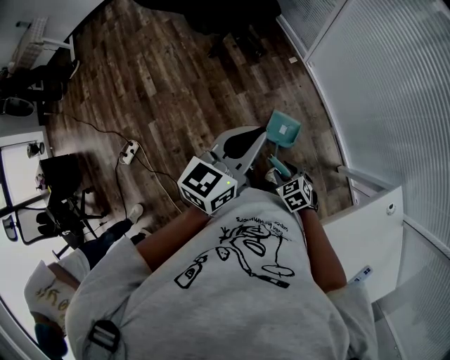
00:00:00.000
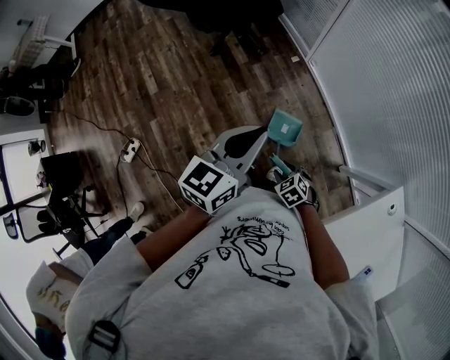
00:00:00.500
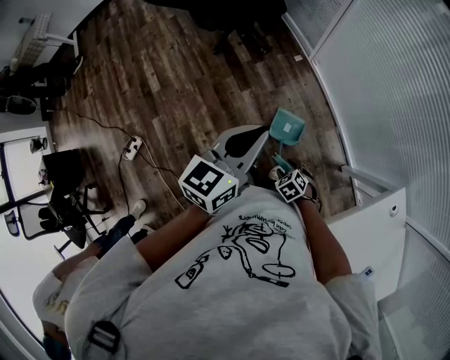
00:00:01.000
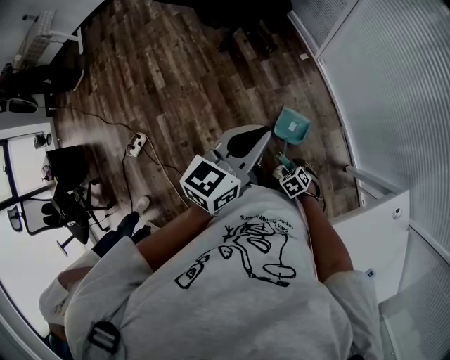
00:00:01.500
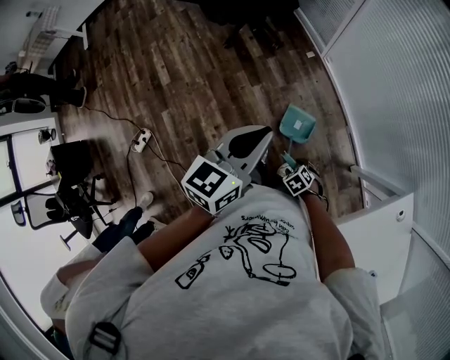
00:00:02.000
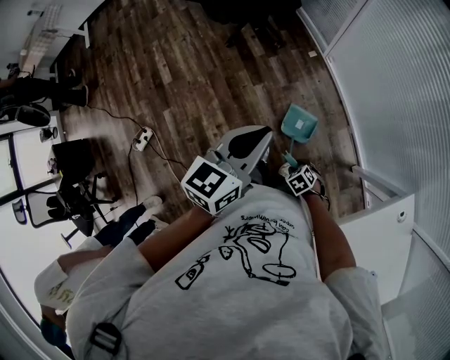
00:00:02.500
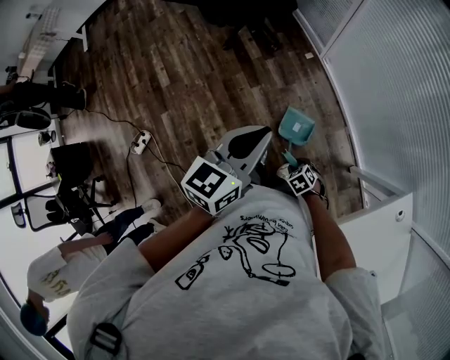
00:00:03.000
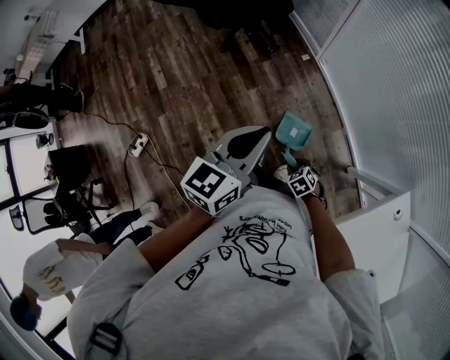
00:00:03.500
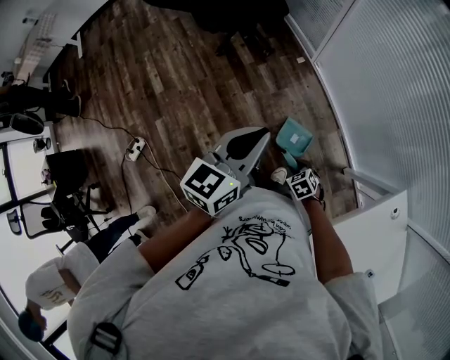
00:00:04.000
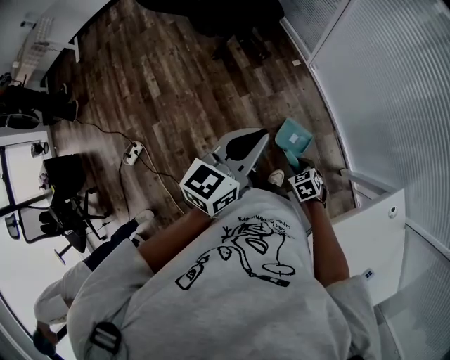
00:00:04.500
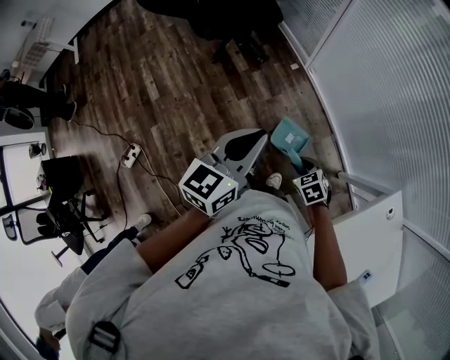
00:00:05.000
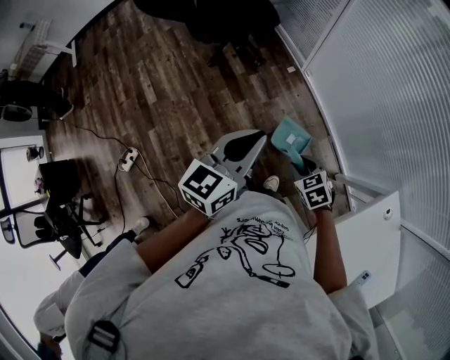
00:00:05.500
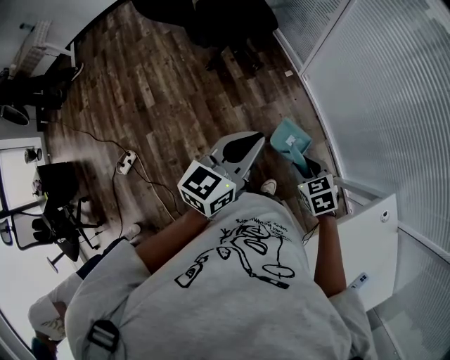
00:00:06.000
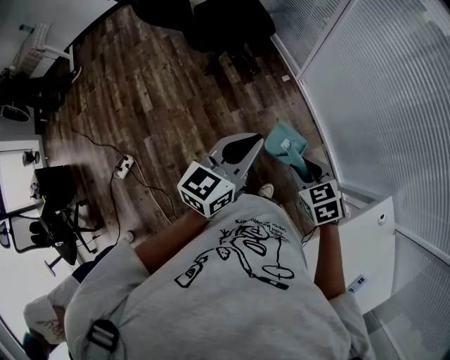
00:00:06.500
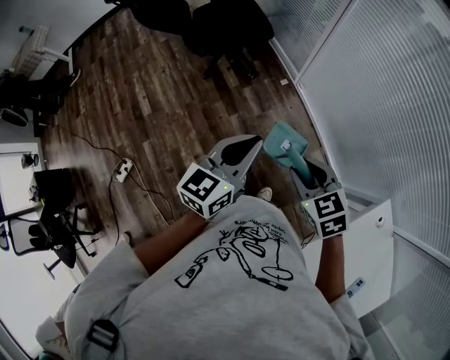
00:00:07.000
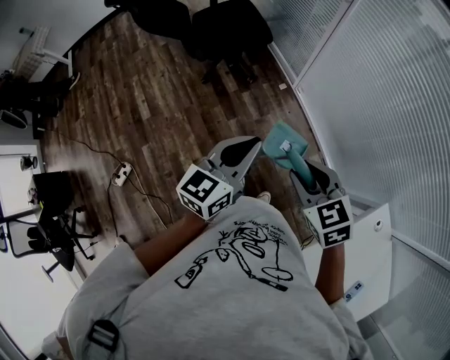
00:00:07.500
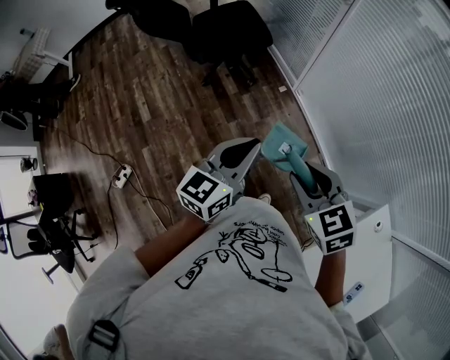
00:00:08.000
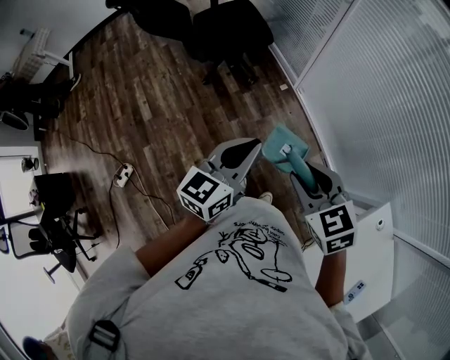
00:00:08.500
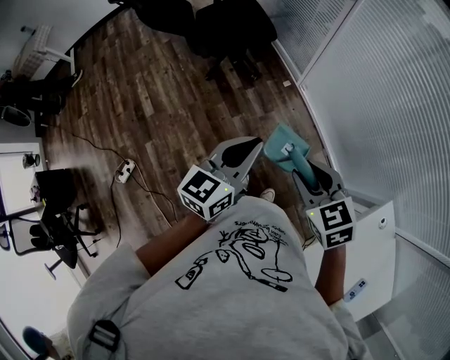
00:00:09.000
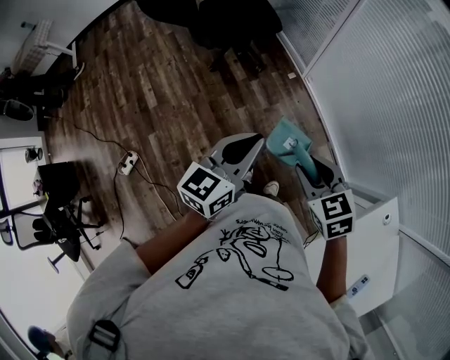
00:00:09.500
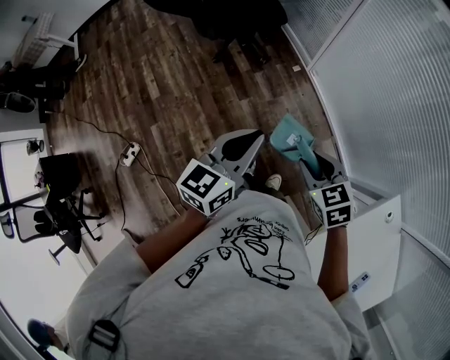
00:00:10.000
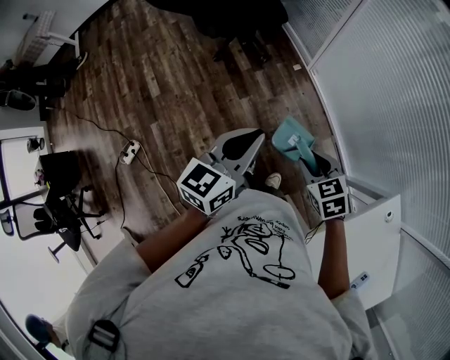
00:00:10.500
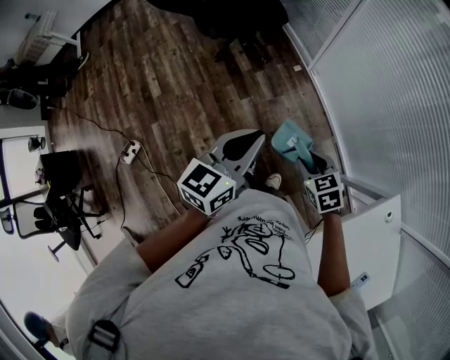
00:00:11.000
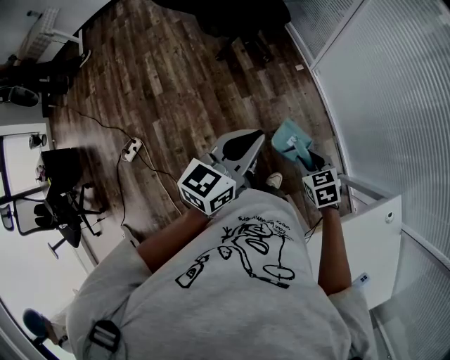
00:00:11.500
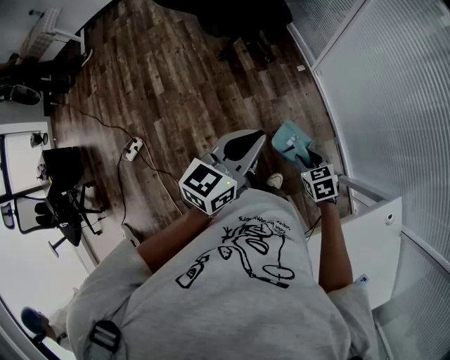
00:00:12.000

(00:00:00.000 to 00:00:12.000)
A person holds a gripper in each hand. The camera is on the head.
00:00:00.000 - 00:00:02.000: The right gripper travels downward by about 15 cm.
00:00:02.000 - 00:00:04.000: The right gripper travels upward by some 5 cm.
00:00:04.000 - 00:00:06.000: The right gripper is displaced upward by roughly 20 cm.
00:00:06.000 - 00:00:08.000: The right gripper goes about 20 cm upward.
00:00:08.000 - 00:00:10.000: The right gripper moves downward, some 10 cm.
00:00:10.000 - 00:00:12.000: The right gripper moves downward, some 15 cm.

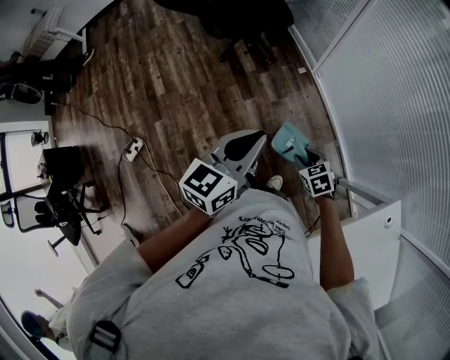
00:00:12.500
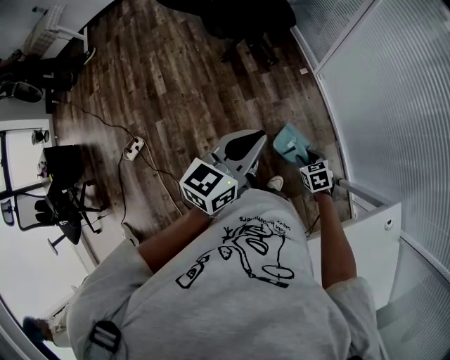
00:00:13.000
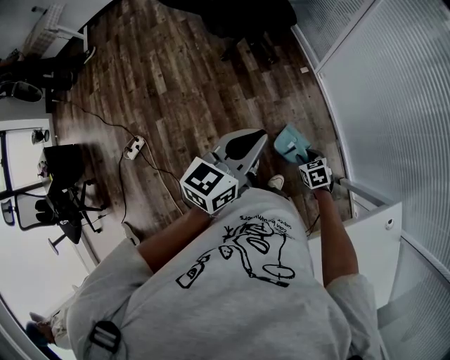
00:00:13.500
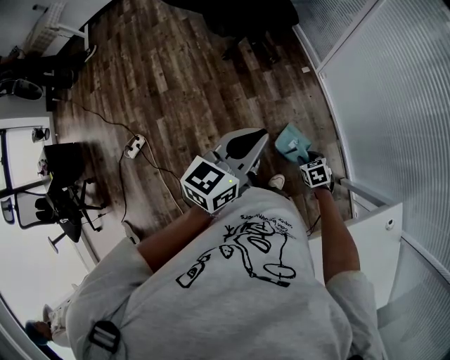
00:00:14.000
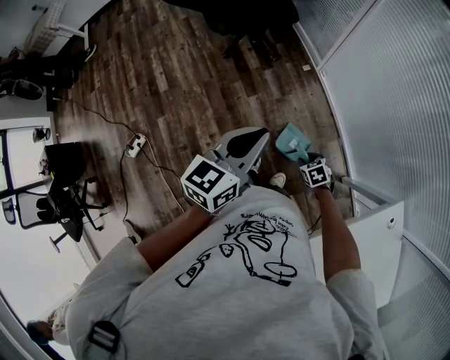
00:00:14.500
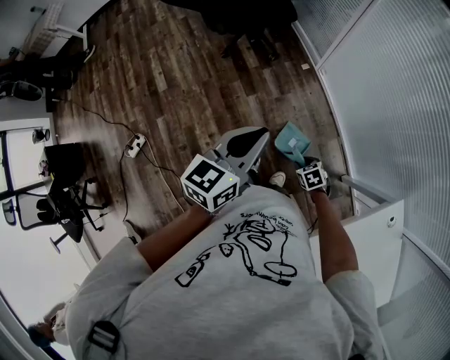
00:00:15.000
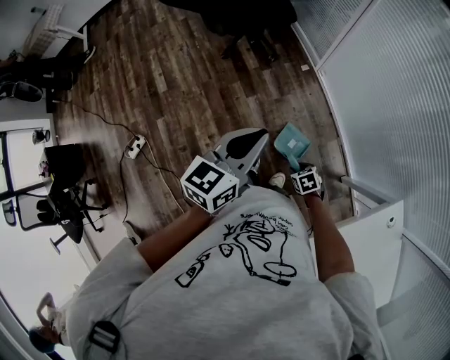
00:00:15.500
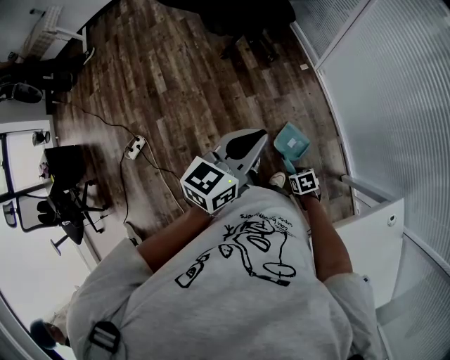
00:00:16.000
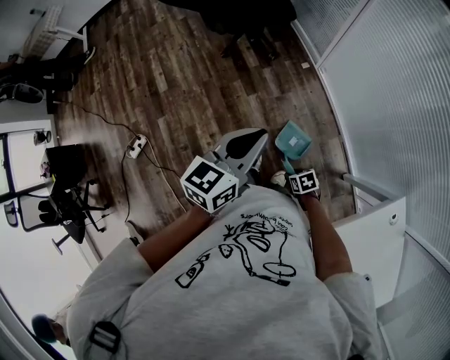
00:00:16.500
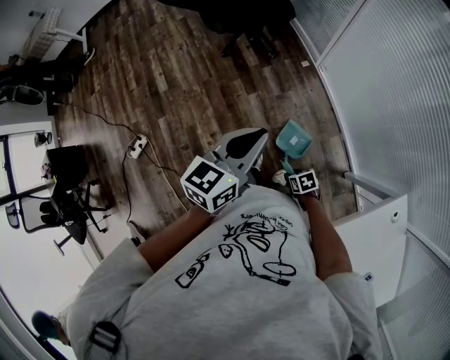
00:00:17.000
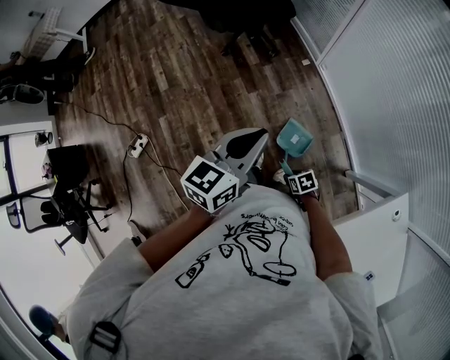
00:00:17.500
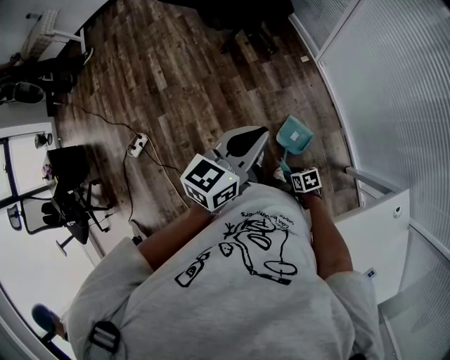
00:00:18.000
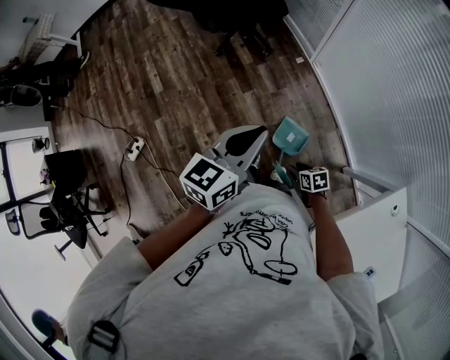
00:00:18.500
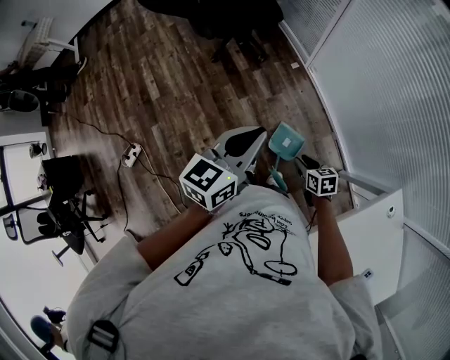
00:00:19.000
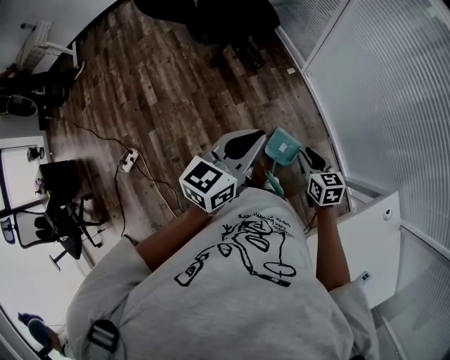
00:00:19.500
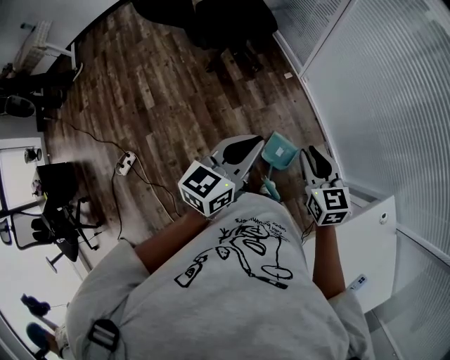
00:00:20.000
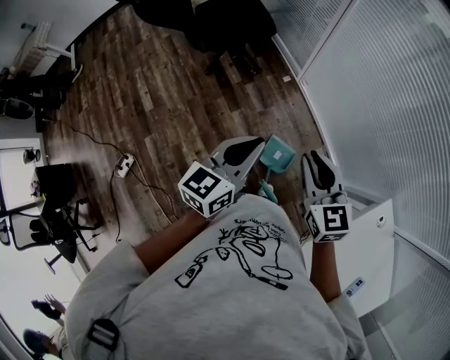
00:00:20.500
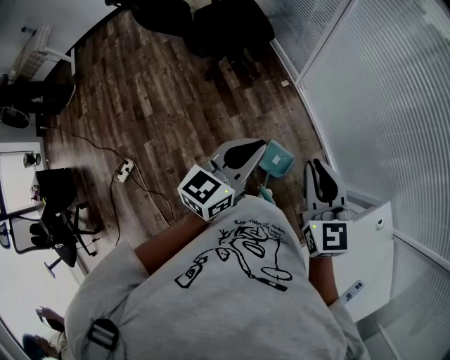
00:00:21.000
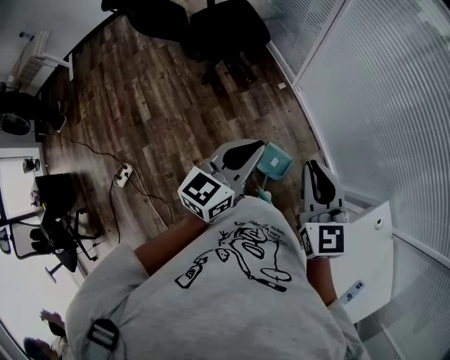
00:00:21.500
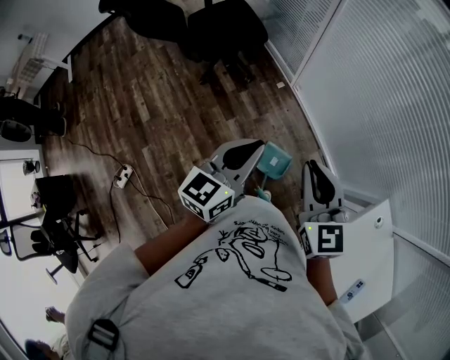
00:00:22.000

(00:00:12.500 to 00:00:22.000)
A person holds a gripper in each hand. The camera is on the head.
00:00:12.500 - 00:00:14.500: The right gripper goes approximately 10 cm downward.
00:00:14.500 - 00:00:16.500: The right gripper shifts some 10 cm backward and to the left.
00:00:16.500 - 00:00:18.000: The grippers stay close to where they were, moving slightly.
00:00:18.000 - 00:00:20.000: The right gripper goes some 35 cm upward, and tips its fingers upward by about 30 degrees.
00:00:20.000 - 00:00:22.000: The right gripper heads upward, covering approximately 10 cm.

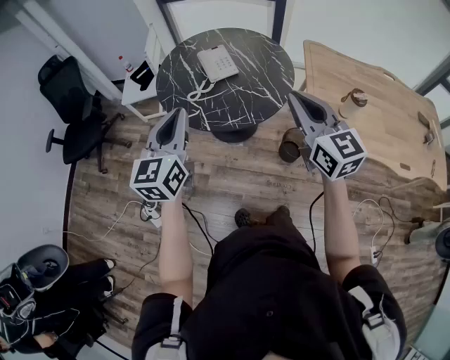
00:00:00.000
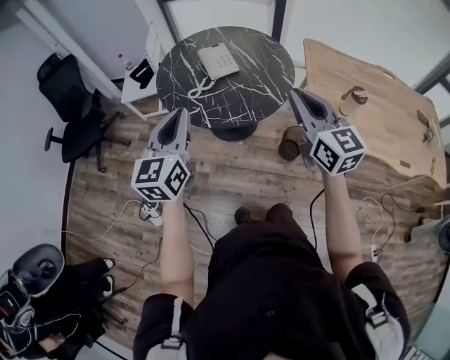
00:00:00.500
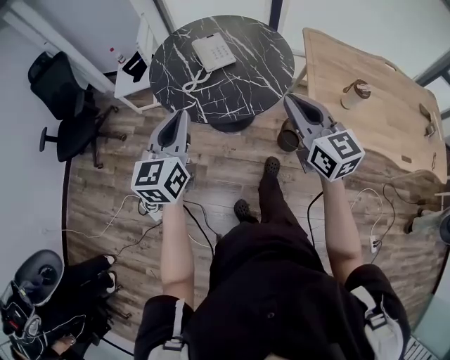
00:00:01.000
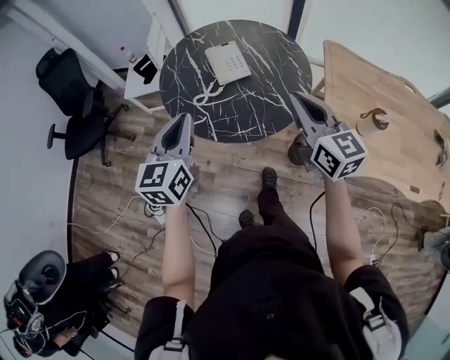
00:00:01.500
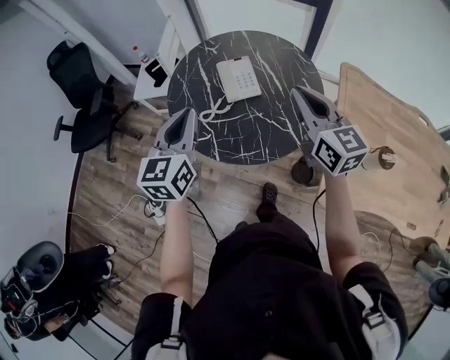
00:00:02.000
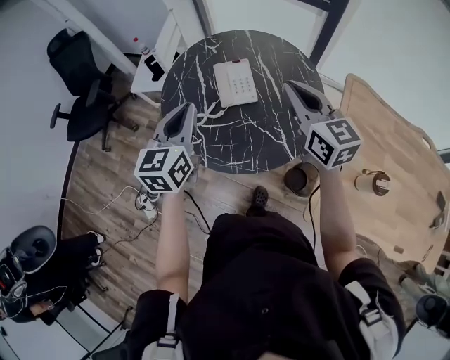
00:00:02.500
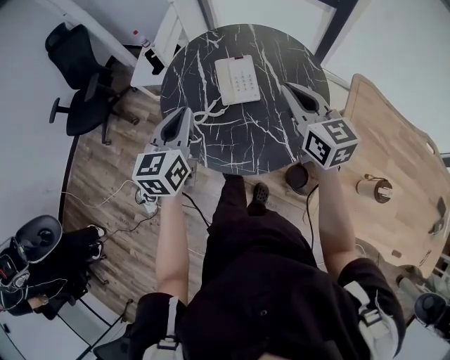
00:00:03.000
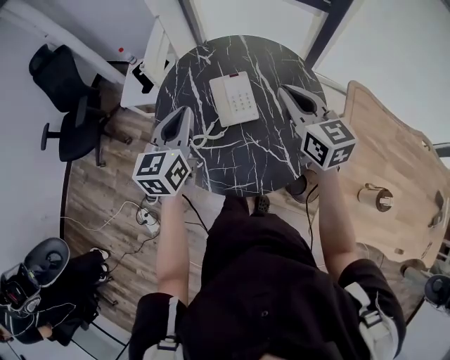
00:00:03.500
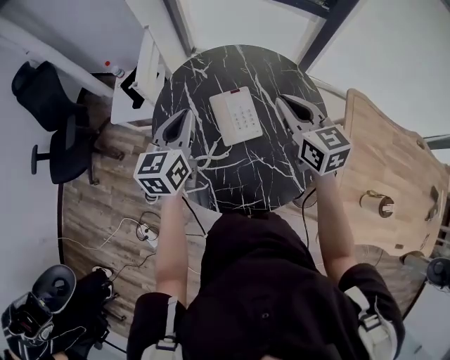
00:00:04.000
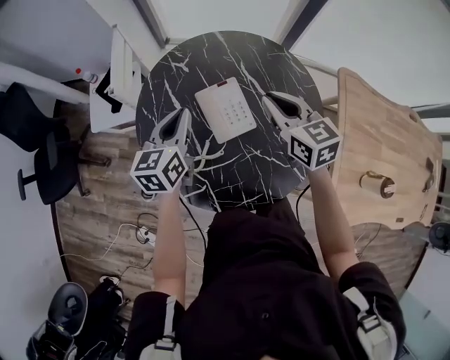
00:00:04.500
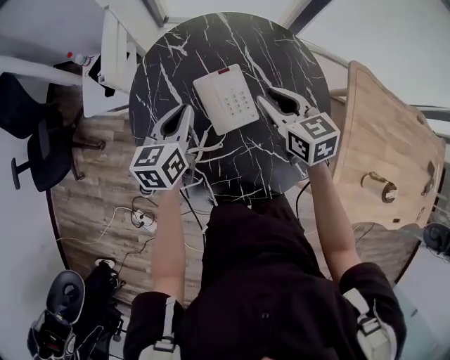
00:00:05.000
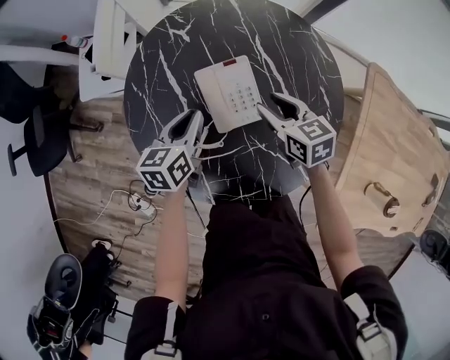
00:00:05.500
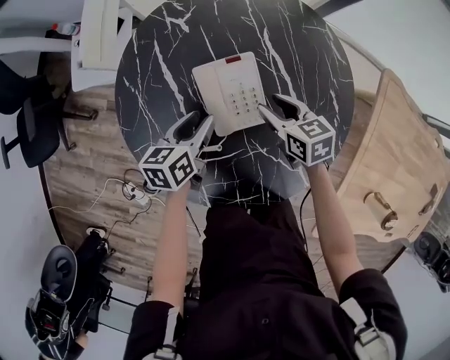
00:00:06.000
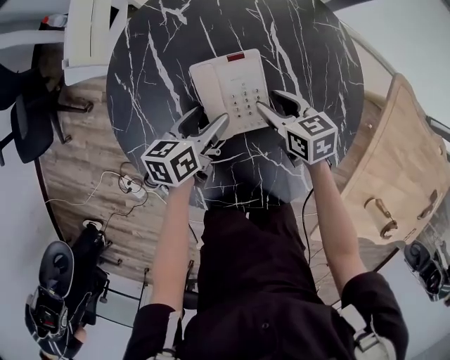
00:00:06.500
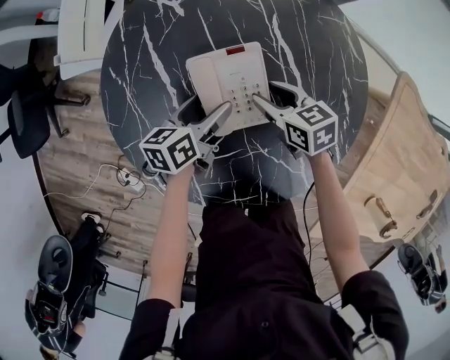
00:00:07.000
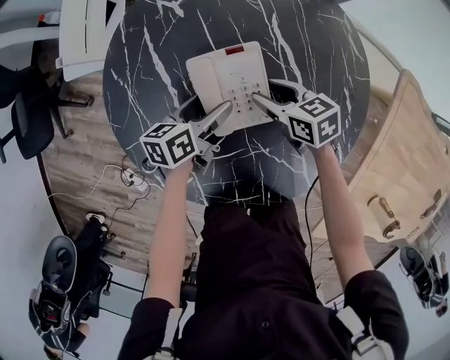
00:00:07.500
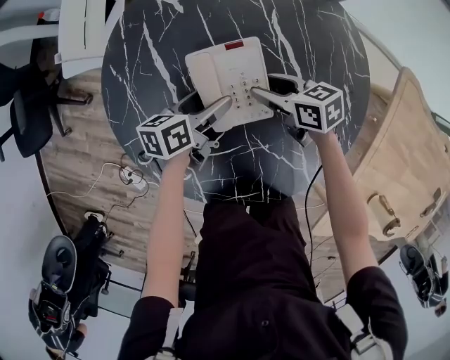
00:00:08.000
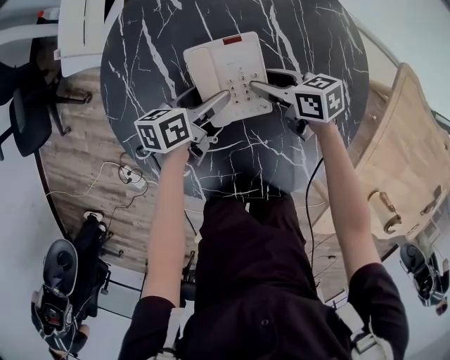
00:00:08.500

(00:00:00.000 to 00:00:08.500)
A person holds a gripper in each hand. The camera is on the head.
00:00:00.000 - 00:00:02.000: Both grippers travel together forward, some 20 cm.
00:00:02.000 - 00:00:04.000: The two grippers go about 25 cm forward.
00:00:04.000 - 00:00:06.500: The grippers both shift downward by approximately 30 cm. The left gripper turns by approximately 40 degrees, and opens up; the right gripper swivels some 40 degrees, and opens its fingers.
00:00:06.500 - 00:00:08.500: The grippers make only small movements.
